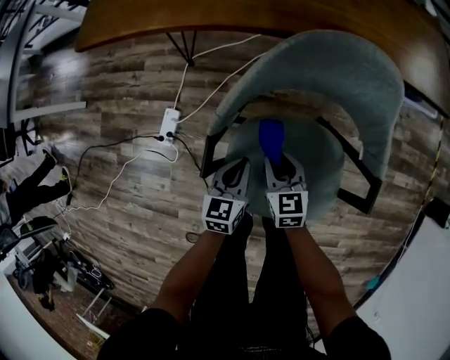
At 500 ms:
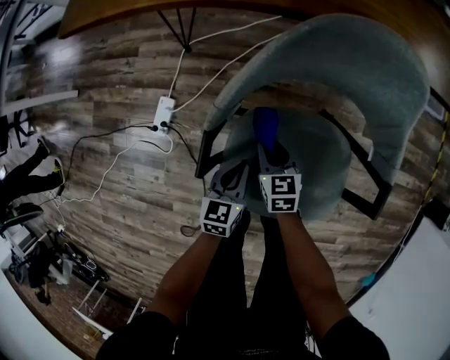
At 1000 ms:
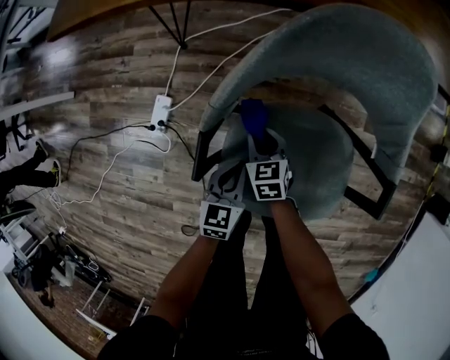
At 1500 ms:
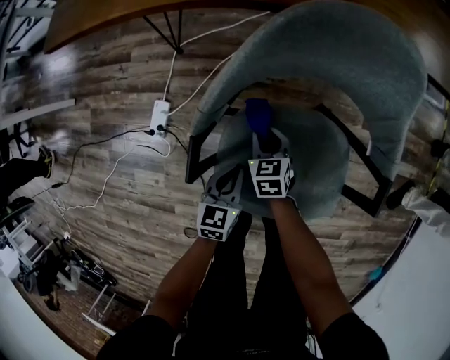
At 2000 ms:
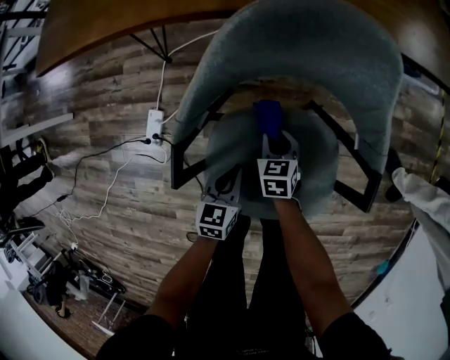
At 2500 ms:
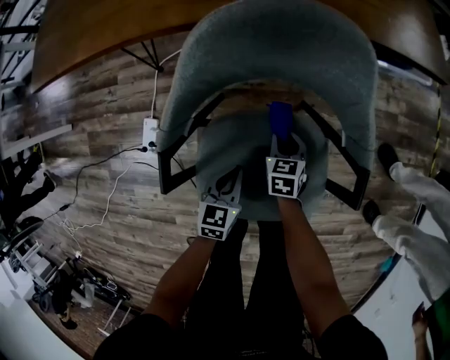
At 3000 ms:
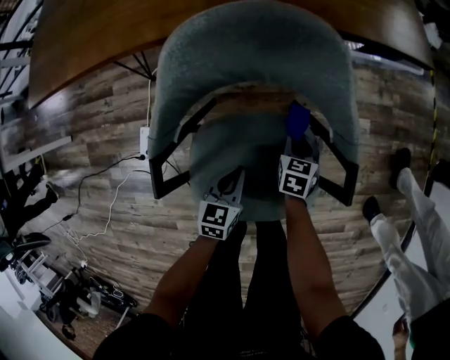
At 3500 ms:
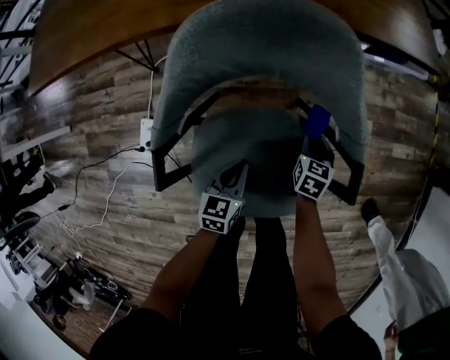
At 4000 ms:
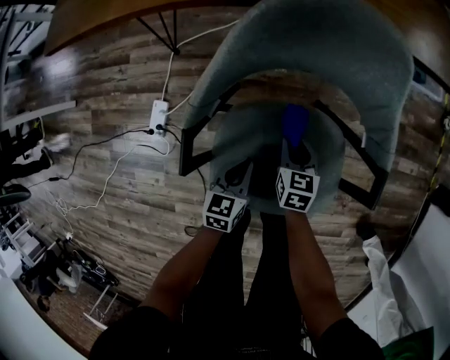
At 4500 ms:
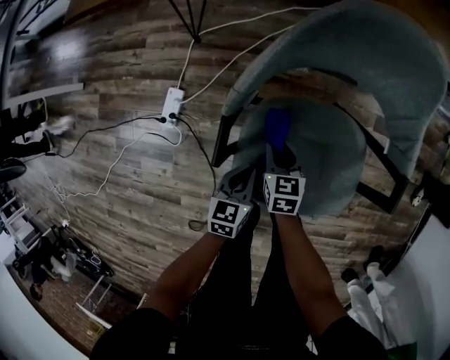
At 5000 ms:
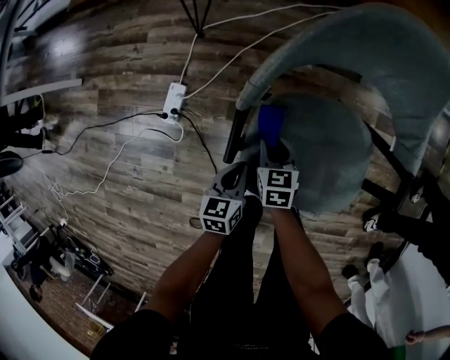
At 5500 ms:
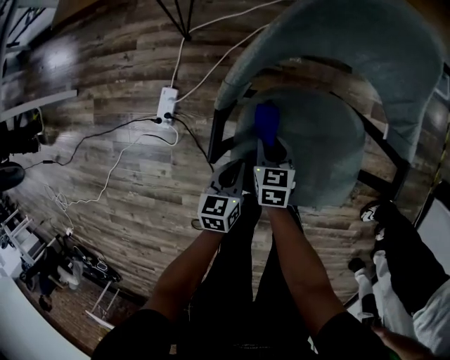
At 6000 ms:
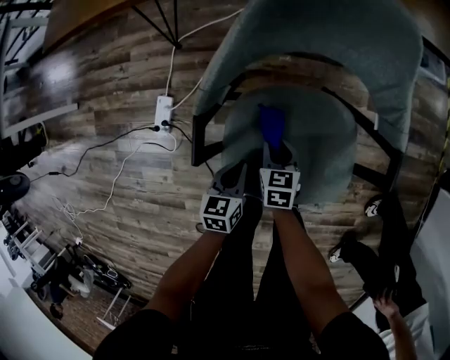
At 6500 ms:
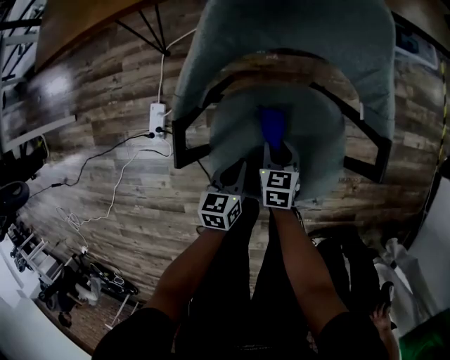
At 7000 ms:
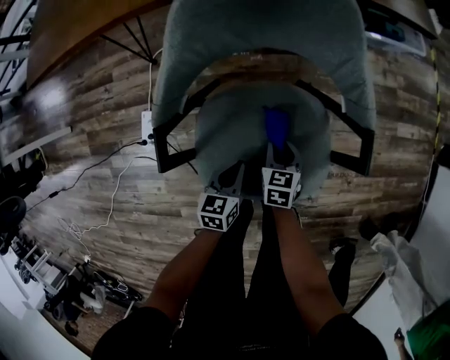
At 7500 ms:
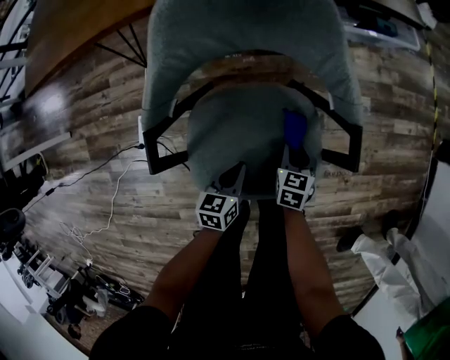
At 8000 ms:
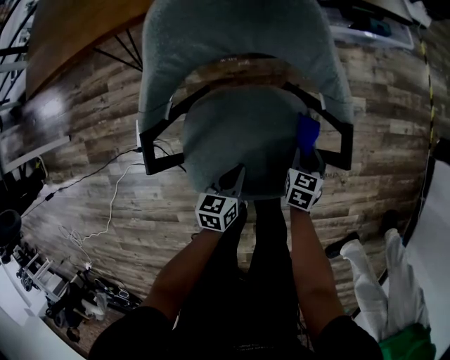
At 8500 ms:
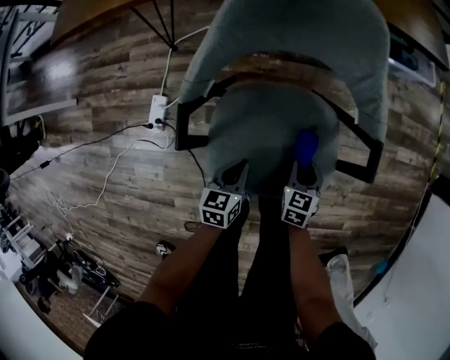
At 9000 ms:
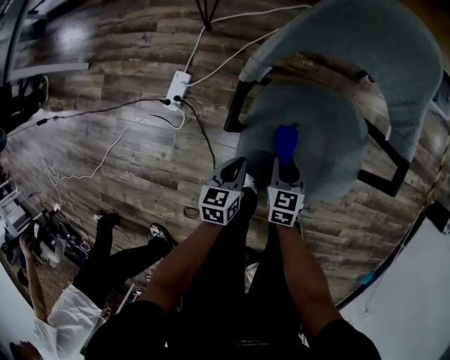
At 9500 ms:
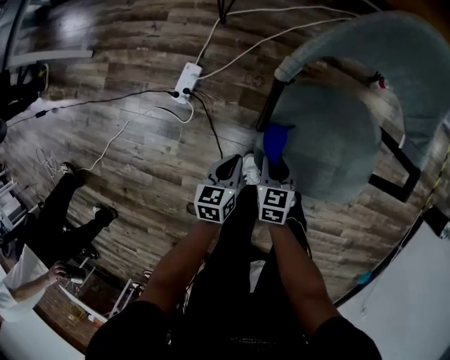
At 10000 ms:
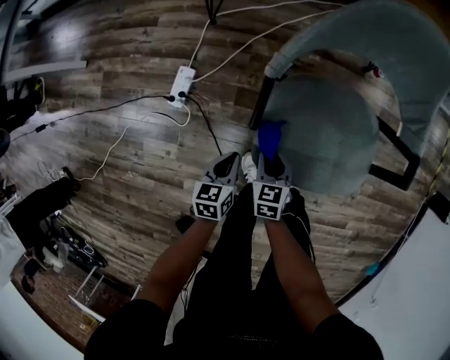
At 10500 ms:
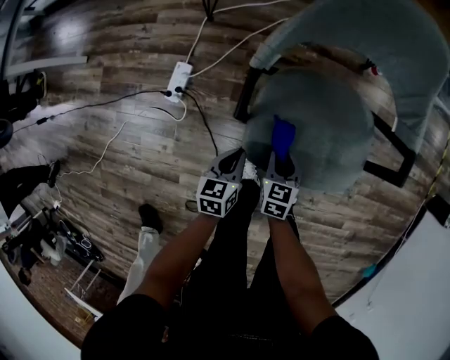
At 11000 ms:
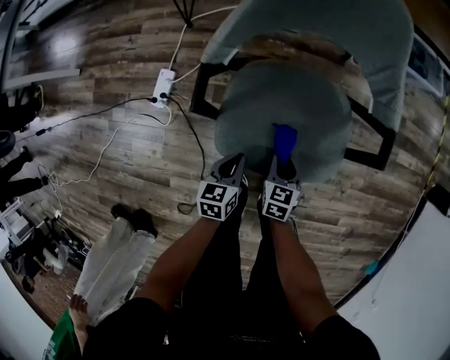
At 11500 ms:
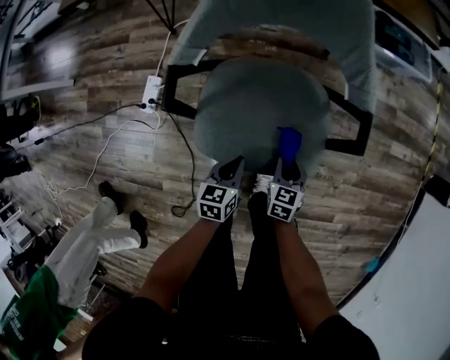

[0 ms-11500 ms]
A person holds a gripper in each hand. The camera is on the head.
0 ms to 2000 ms: The right gripper is displaced downward and to the right by approximately 15 cm. Meanwhile the left gripper goes some 5 cm downward.
2000 ms to 4000 ms: The right gripper travels to the right and back again, some 20 cm each way.
4000 ms to 6000 ms: The left gripper travels backward and to the left by some 10 cm. Meanwhile the right gripper goes some 10 cm to the left and backward.
6000 ms to 7500 ms: The left gripper heads to the right, covering about 10 cm. The right gripper moves to the right, about 20 cm.
7500 ms to 9500 ms: The right gripper moves some 30 cm, and rotates about 30 degrees; the left gripper shifts by approximately 25 cm, and changes its angle by roughly 20 degrees.
9500 ms to 11500 ms: The grippers both shift to the right by about 25 cm.

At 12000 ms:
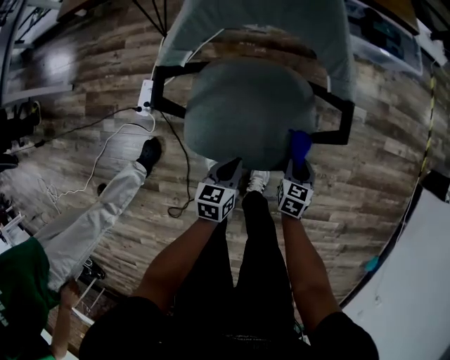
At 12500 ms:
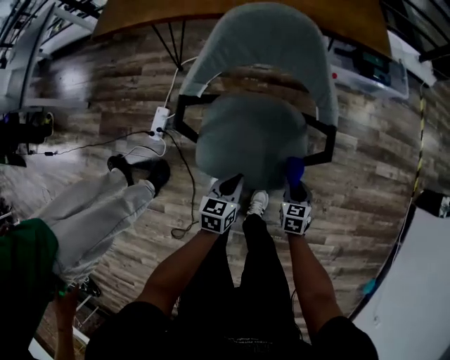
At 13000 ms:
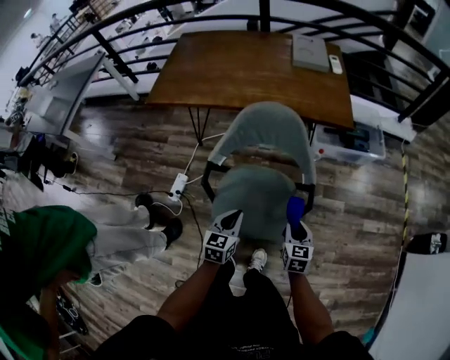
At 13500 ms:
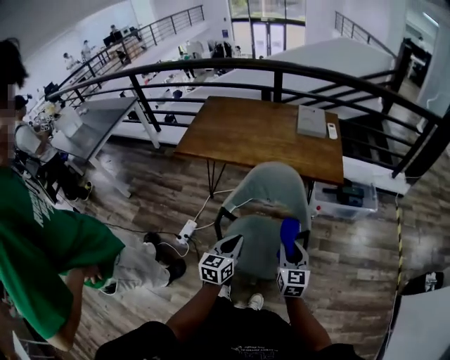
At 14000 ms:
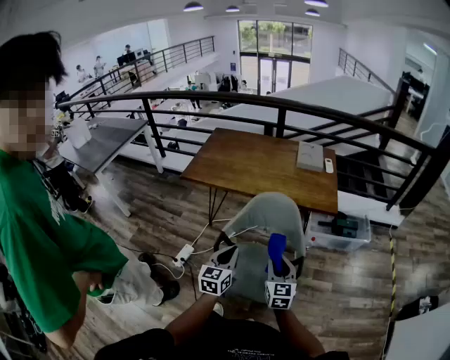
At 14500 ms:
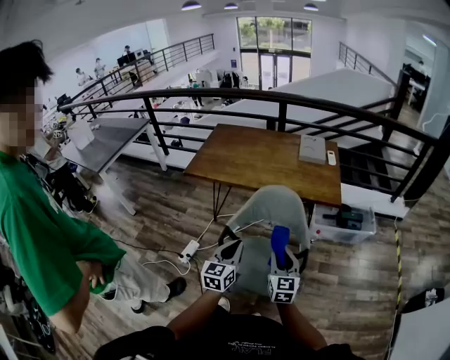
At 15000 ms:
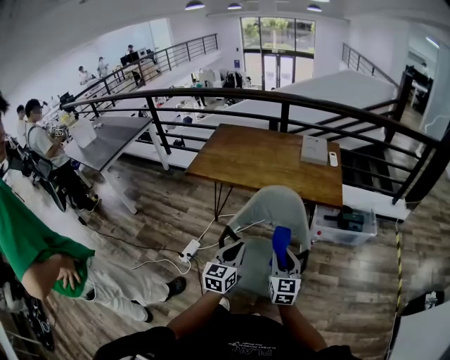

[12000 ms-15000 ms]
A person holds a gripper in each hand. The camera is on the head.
12000 ms to 13500 ms: The two grippers go roughly 40 cm upward. The left gripper changes its angle by roughly 30 degrees. The right gripper points its fingers some 40 degrees further upward.
13500 ms to 15000 ms: The right gripper shifts by approximately 5 cm; the left gripper travels upward by about 5 cm.

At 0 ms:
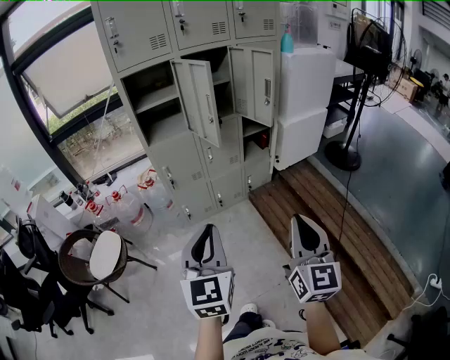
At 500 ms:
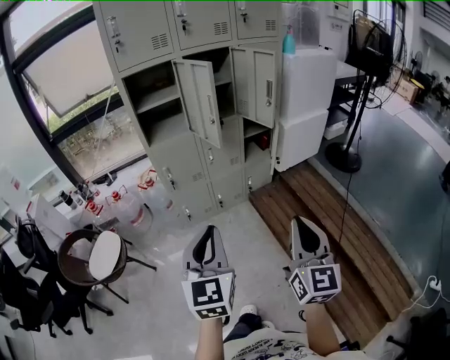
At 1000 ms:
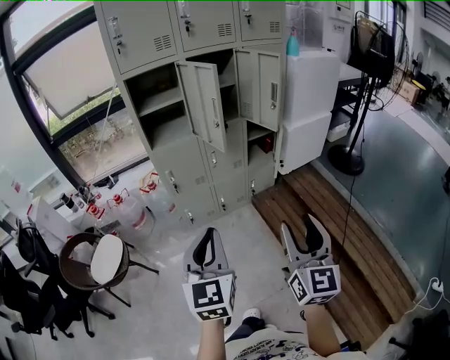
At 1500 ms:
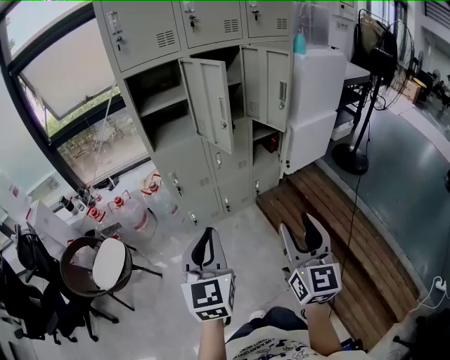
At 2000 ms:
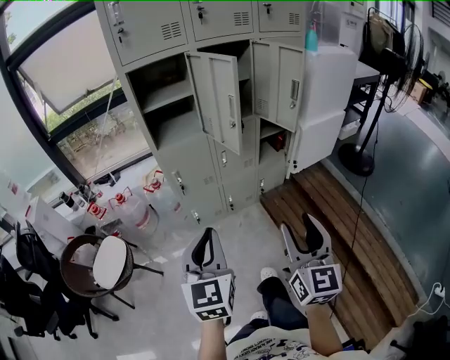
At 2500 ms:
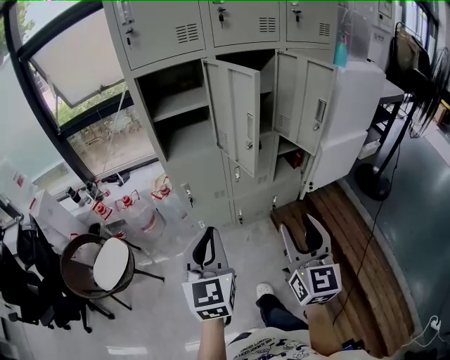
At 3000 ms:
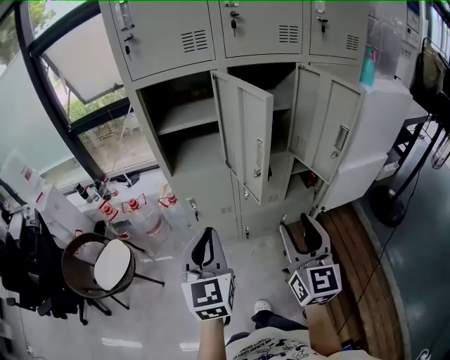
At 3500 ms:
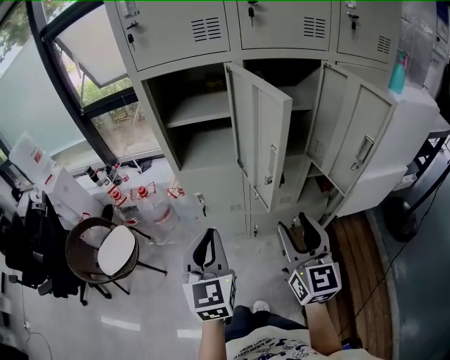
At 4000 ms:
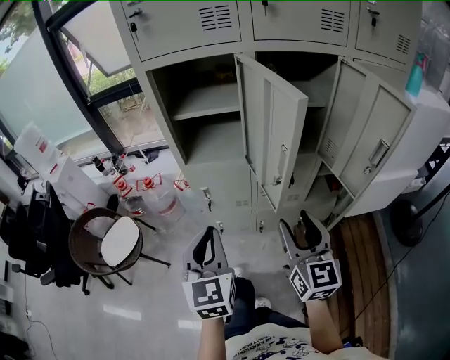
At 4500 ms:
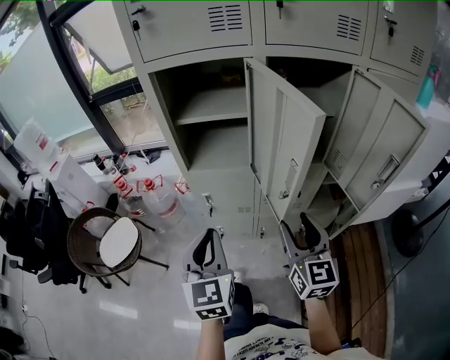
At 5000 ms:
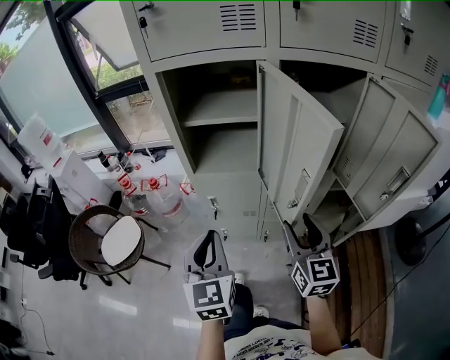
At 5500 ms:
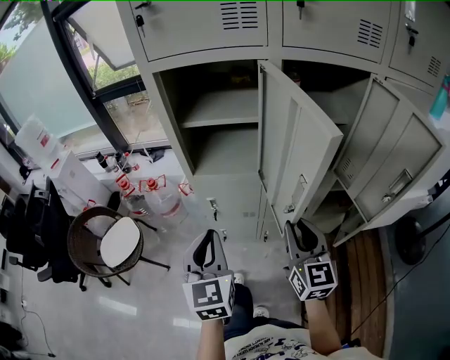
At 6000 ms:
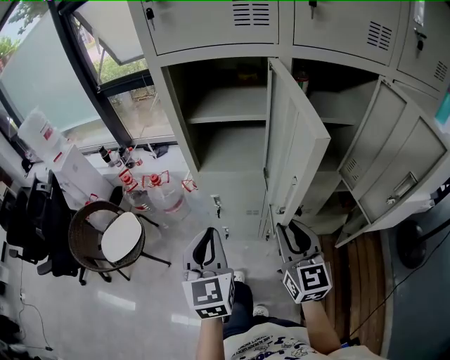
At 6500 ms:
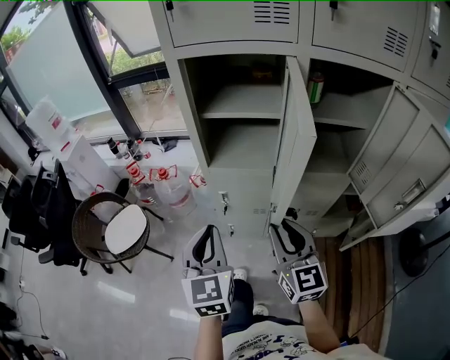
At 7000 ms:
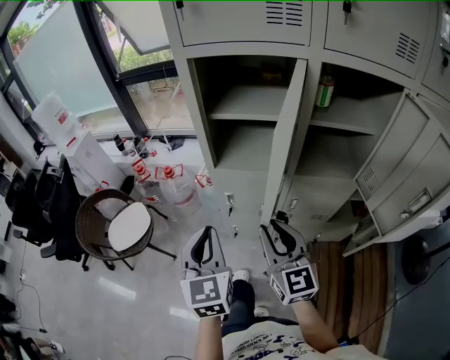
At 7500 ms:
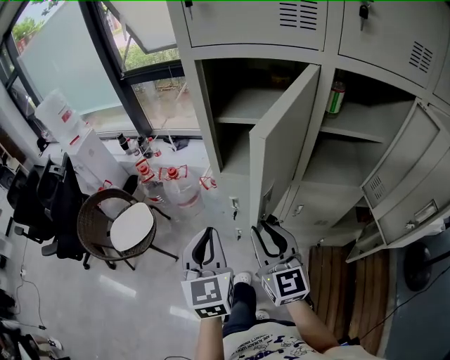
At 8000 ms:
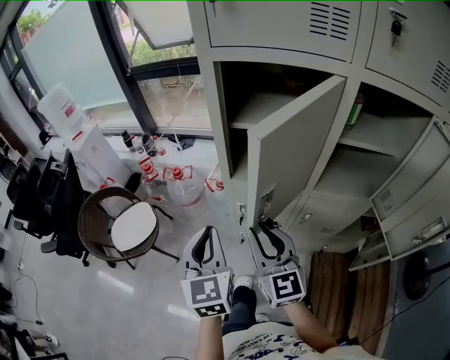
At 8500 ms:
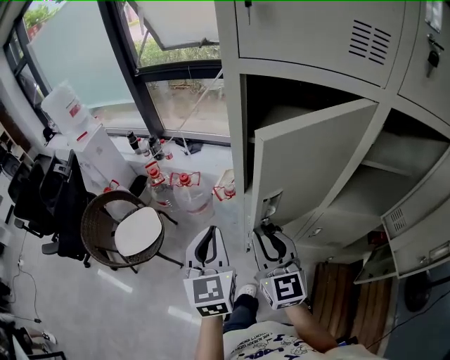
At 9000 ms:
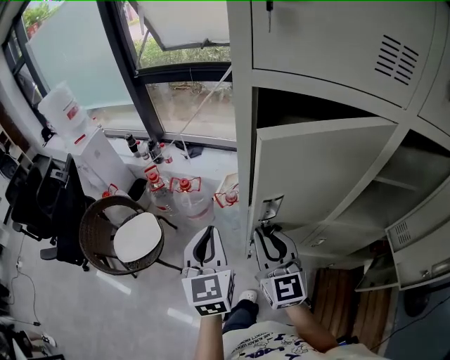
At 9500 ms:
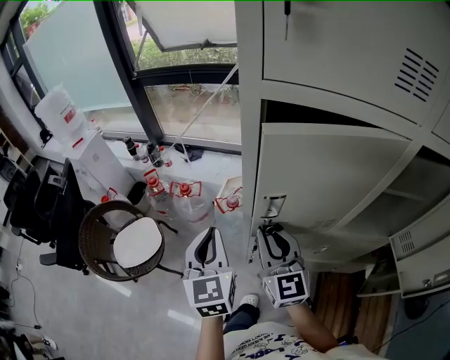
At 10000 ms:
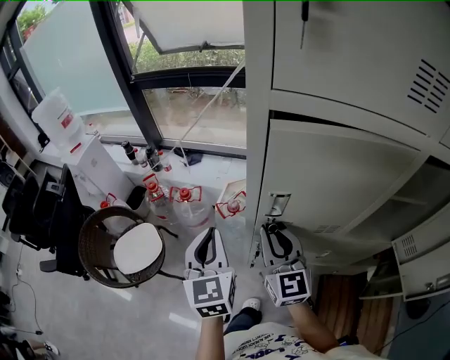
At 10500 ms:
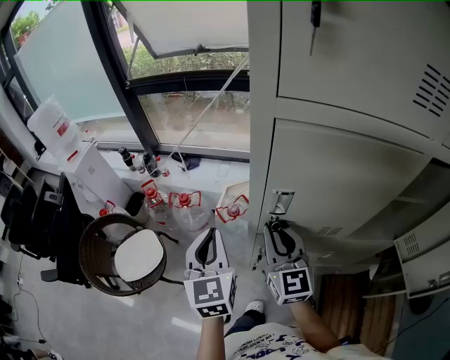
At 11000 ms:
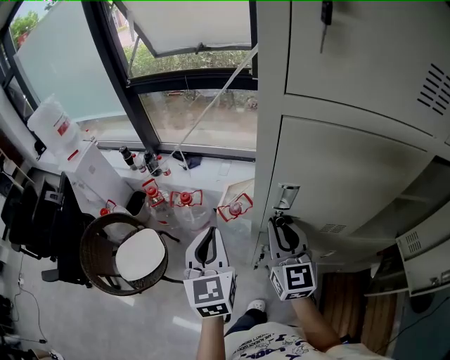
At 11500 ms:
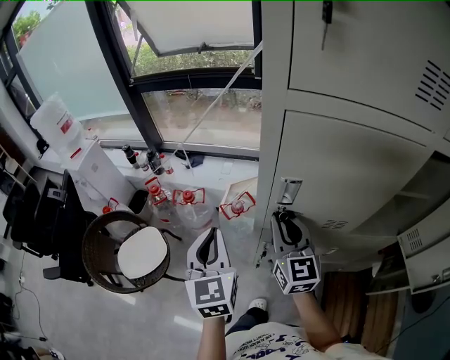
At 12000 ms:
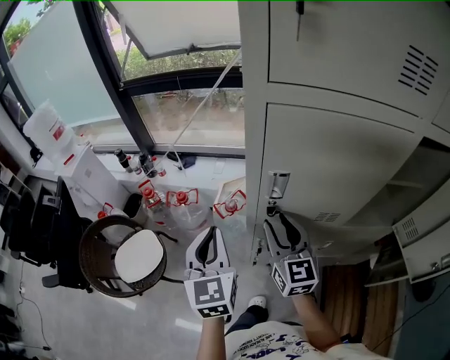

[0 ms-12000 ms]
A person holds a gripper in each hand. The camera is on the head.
0 ms to 2000 ms: The two grippers go some 15 cm forward and to the left. The right gripper opens.
2000 ms to 4000 ms: The grippers both shift forward by roughly 30 cm. The right gripper turns by approximately 30 degrees; the left gripper turns by roughly 20 degrees.
4000 ms to 6000 ms: The grippers both shift forward by about 10 cm. The right gripper closes.
6000 ms to 8000 ms: The right gripper travels to the left and forward by some 15 cm. The left gripper shifts about 10 cm to the left and forward.
8000 ms to 10000 ms: Both grippers travel together forward, some 20 cm.
10000 ms to 12000 ms: The right gripper opens up.
